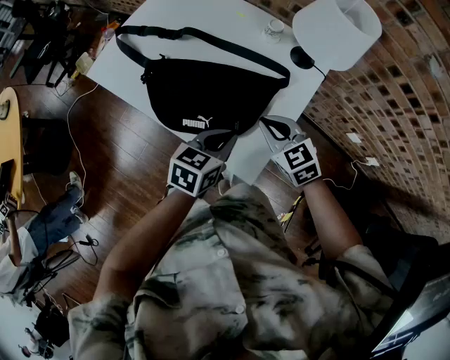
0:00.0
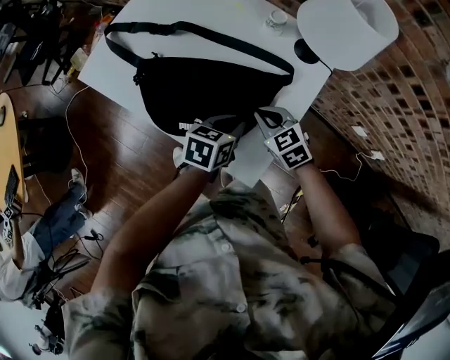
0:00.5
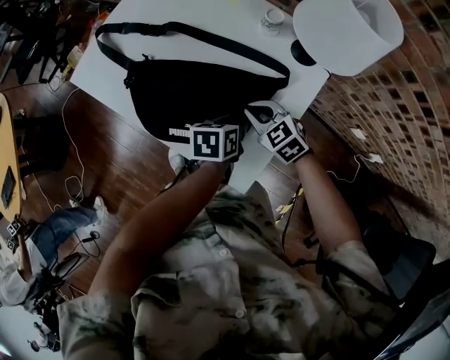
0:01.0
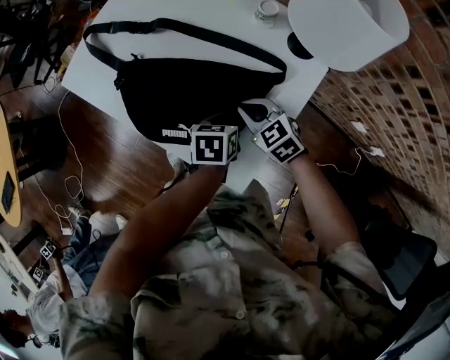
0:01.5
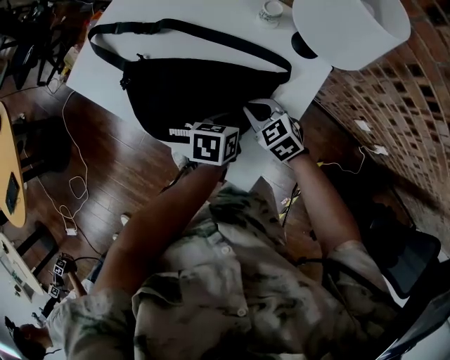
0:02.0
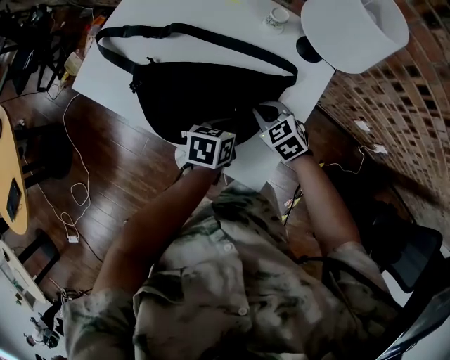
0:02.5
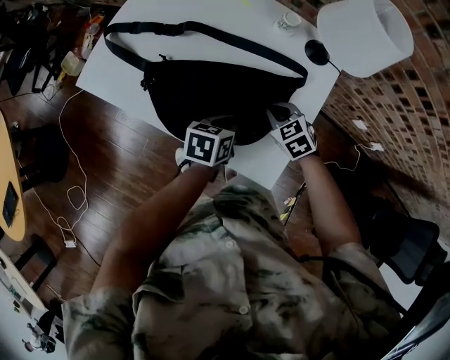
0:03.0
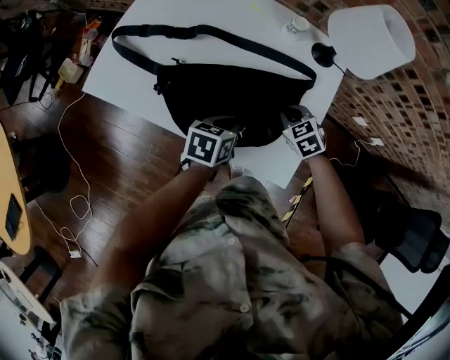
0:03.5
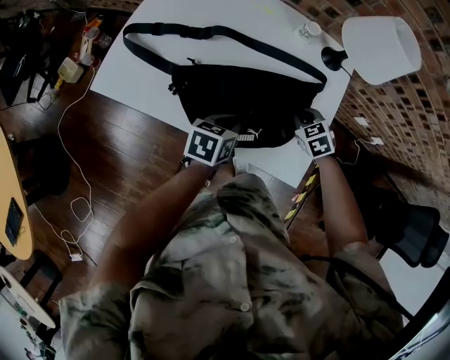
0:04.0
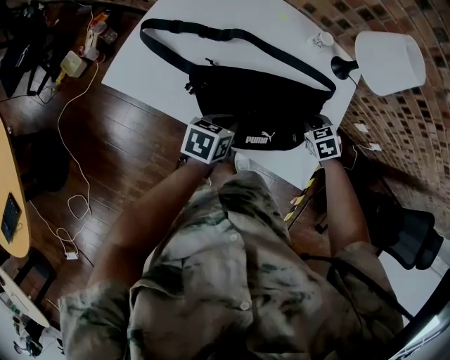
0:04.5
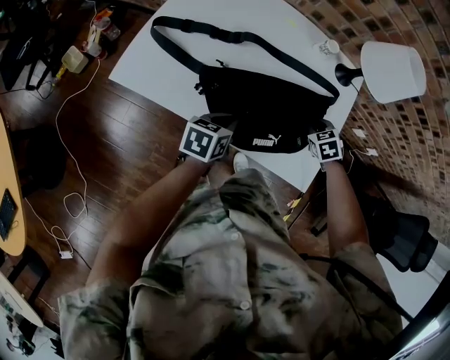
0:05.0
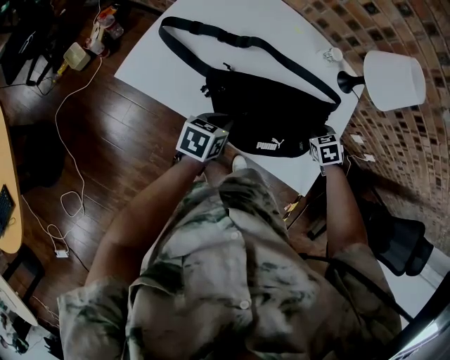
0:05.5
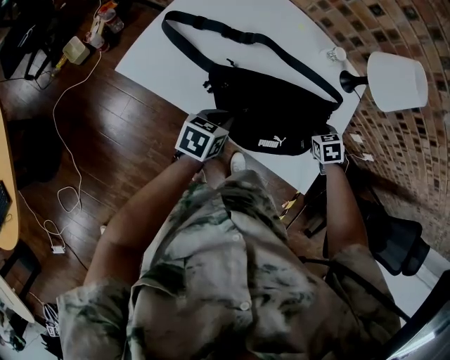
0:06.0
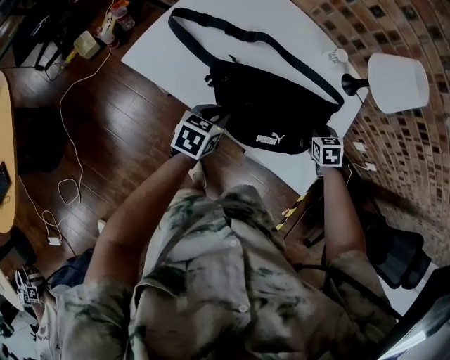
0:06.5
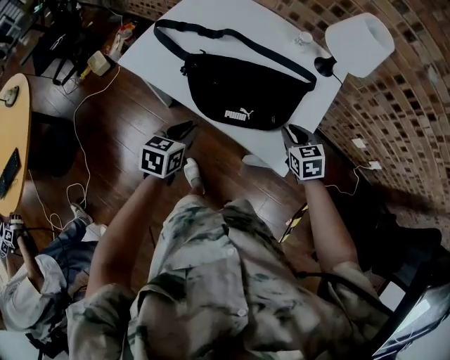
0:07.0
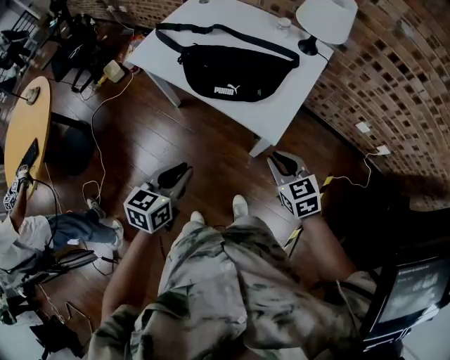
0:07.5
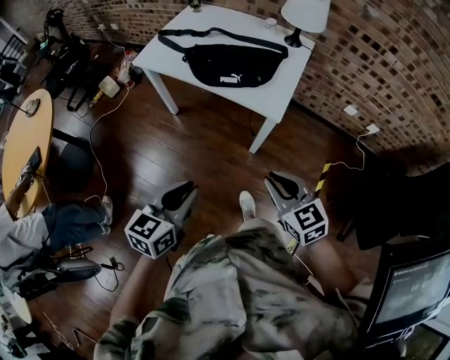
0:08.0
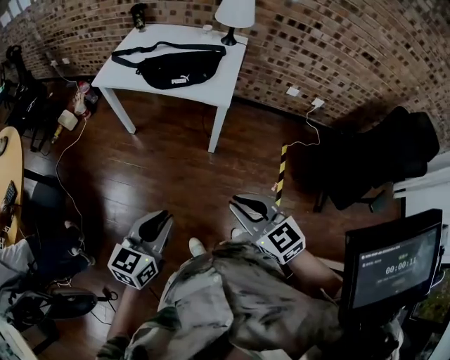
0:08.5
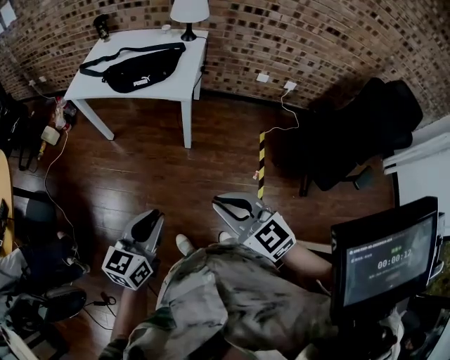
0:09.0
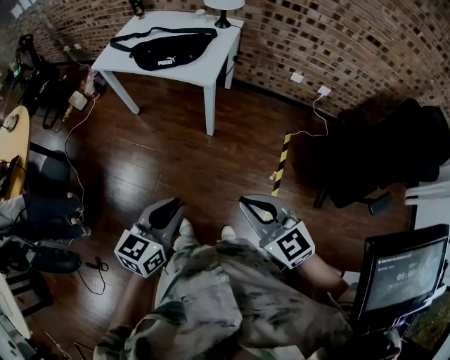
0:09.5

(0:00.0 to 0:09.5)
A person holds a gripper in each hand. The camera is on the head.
0:00.0 - 0:02.0: Both grippers move downward and forward, about 15 cm. The left gripper rotates roughly 20 degrees, and opens, then closes again.
0:02.0 - 0:04.0: The left gripper ends up roughly 15 cm from where it was. Meanwhile the right gripper changes its angle by about 30 degrees.
0:04.0 - 0:05.5: The left gripper moves to the left, roughly 10 cm.
0:05.5 - 0:07.5: The left gripper shifts by about 40 cm, and turns by roughly 20 degrees, while the right gripper ends up about 35 cm from where it was, and points its fingers roughly 30 degrees further upward.
0:07.5 - 0:09.5: The two grippers travel together, backward, about 40 cm.

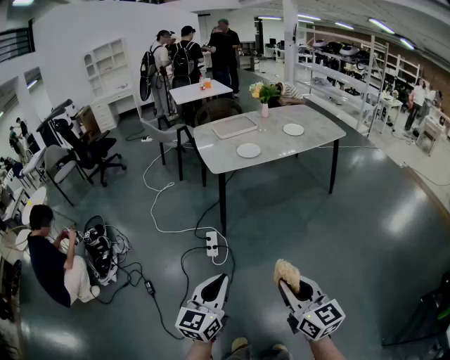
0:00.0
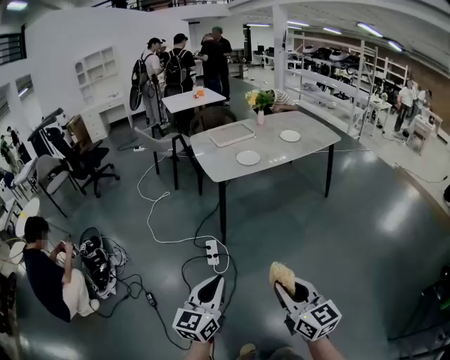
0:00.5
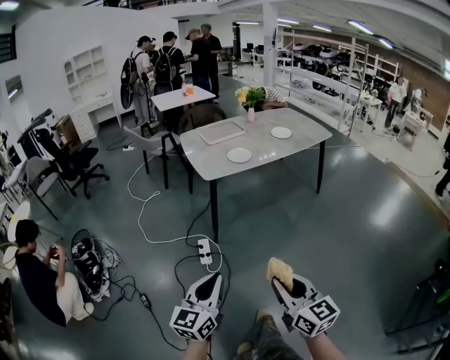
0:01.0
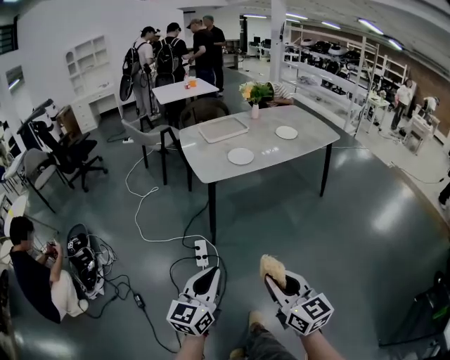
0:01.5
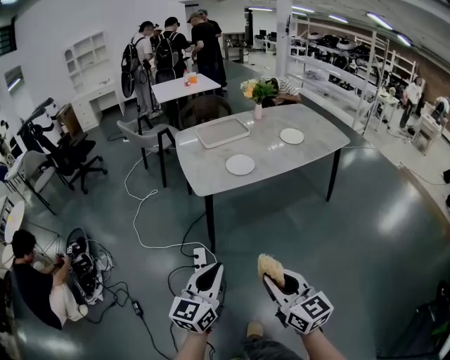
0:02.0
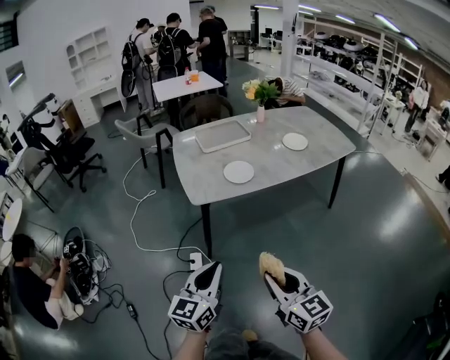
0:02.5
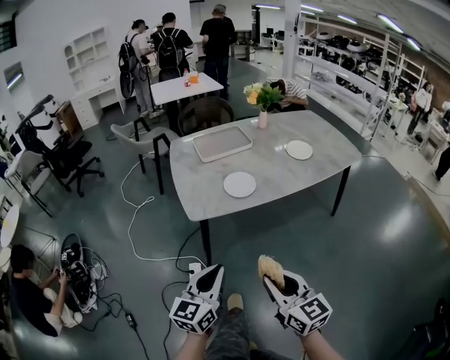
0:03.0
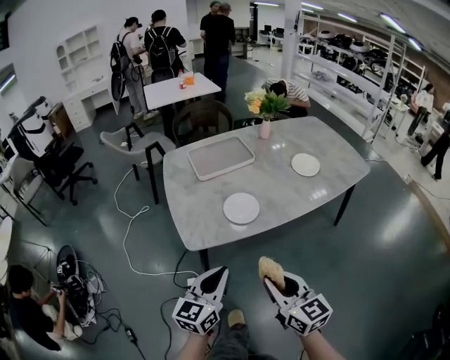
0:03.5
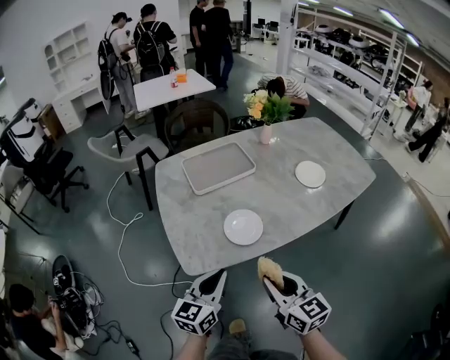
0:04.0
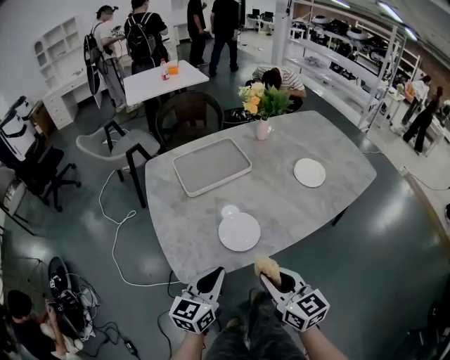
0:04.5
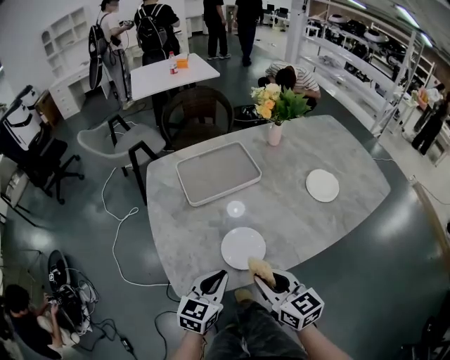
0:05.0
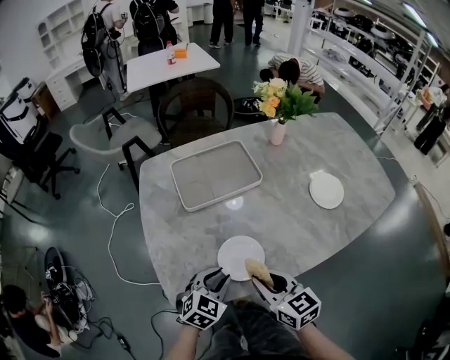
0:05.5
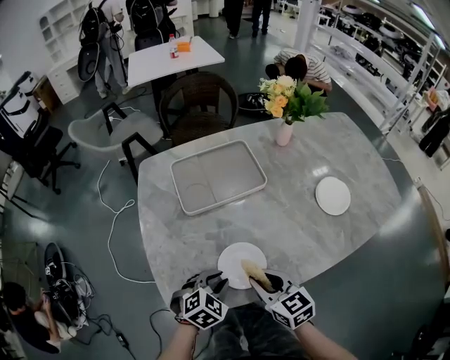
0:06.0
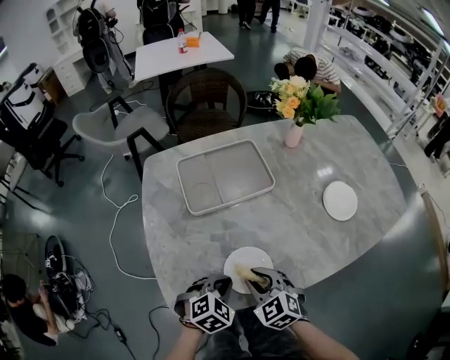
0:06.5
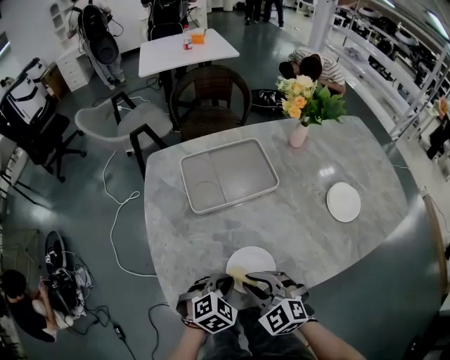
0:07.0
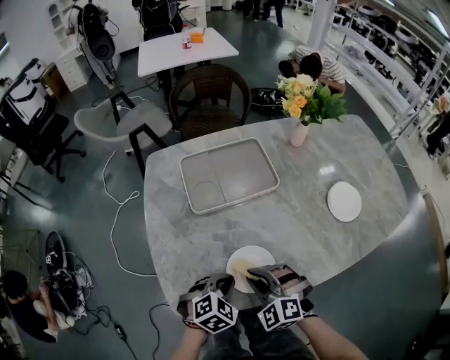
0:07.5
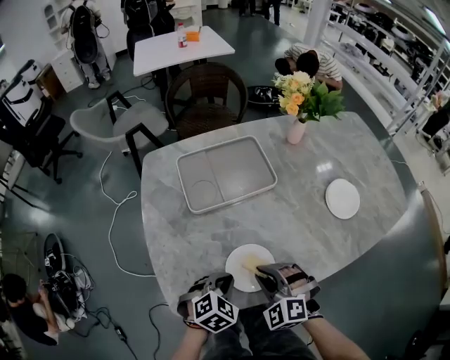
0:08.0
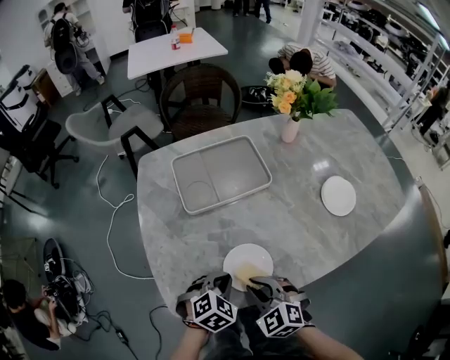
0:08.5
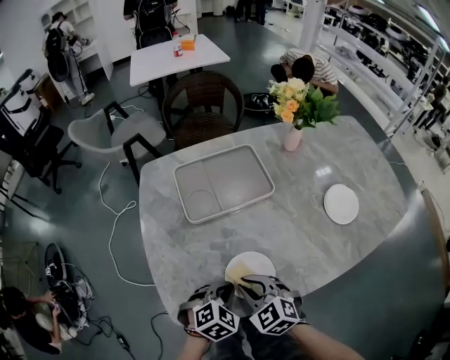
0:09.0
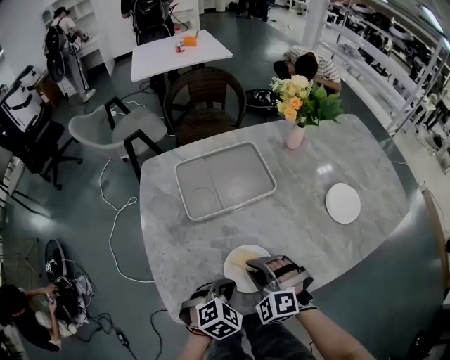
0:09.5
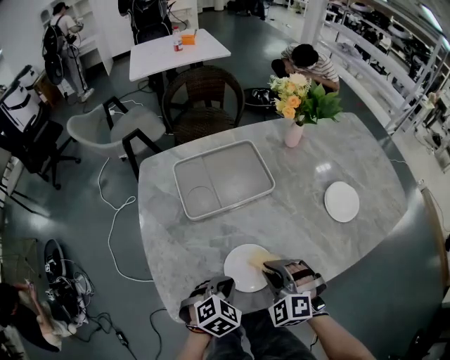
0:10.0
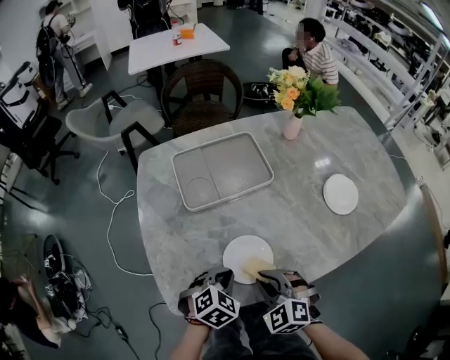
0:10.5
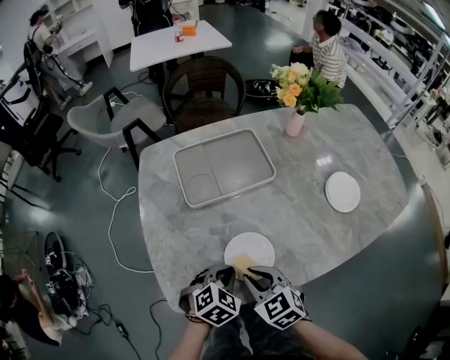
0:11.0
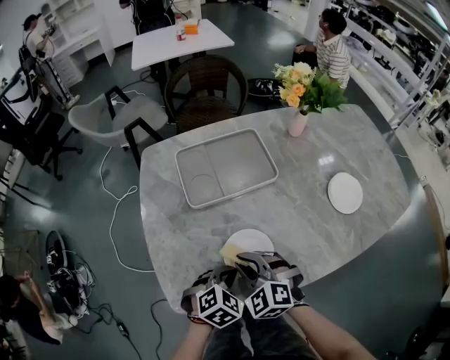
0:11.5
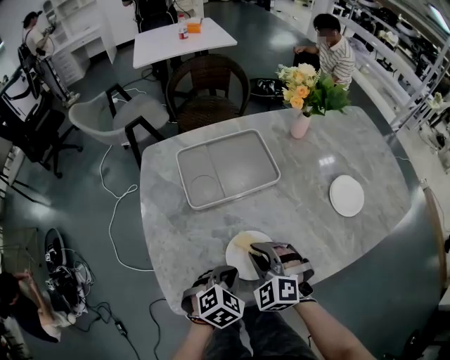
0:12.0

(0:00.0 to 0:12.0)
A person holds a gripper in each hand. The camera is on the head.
0:00.0 - 0:02.0: The two grippers go about 25 cm forward.
0:02.0 - 0:04.0: The grippers both shift forward by roughly 40 cm.
0:04.0 - 0:06.0: The grippers both shift forward and downward by some 20 cm. The right gripper rotates about 20 degrees, while the left gripper tips its fingers downward by approximately 40 degrees, and opens up.
0:06.0 - 0:08.0: The left gripper closes up. The right gripper twists approximately 60 degrees counterclockwise, seen from behind.
0:10.0 - 0:12.0: The right gripper ends up approximately 5 cm from where it was.

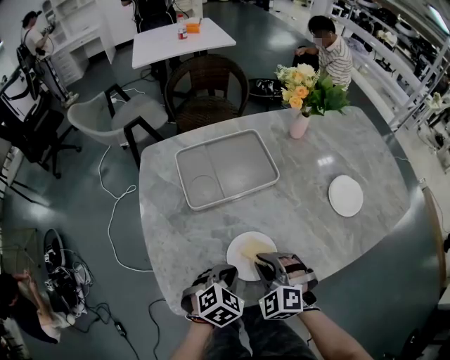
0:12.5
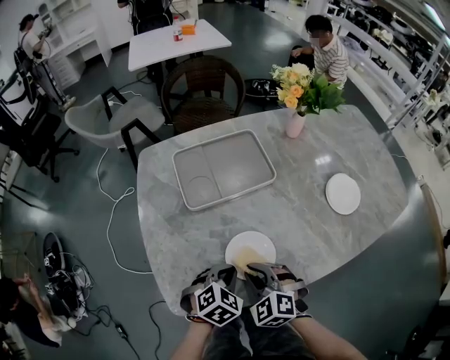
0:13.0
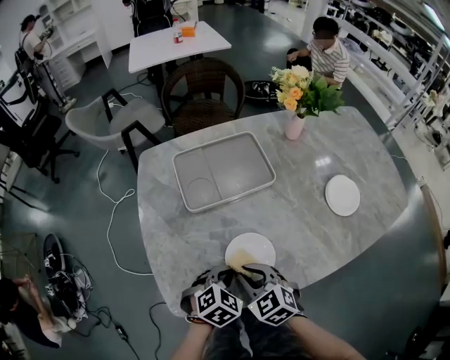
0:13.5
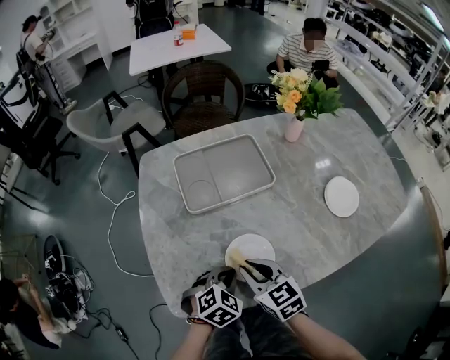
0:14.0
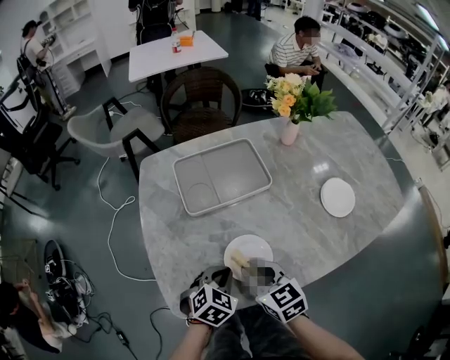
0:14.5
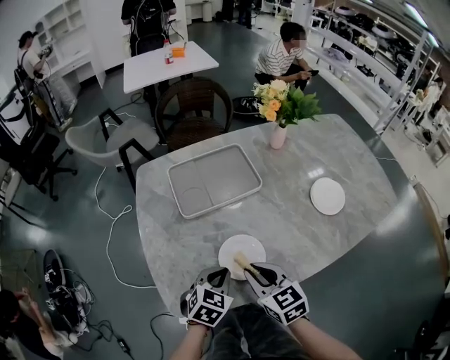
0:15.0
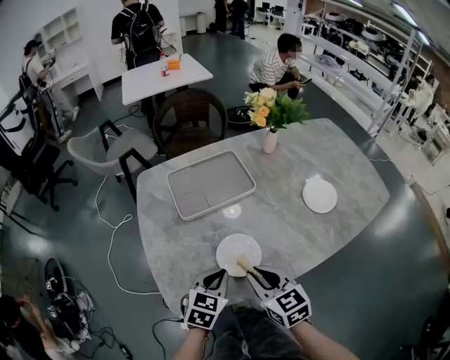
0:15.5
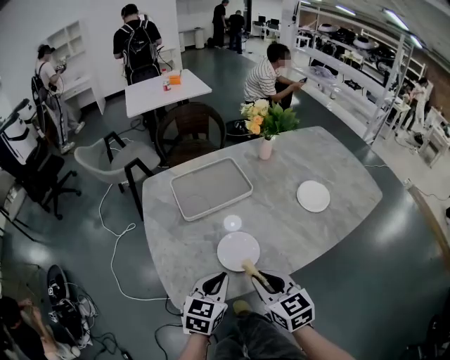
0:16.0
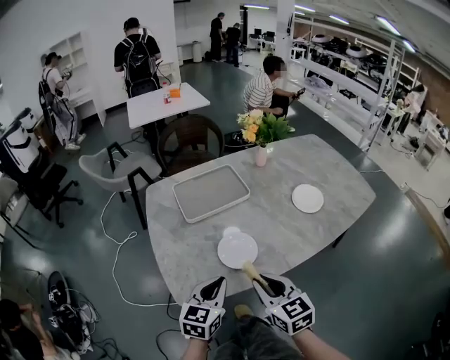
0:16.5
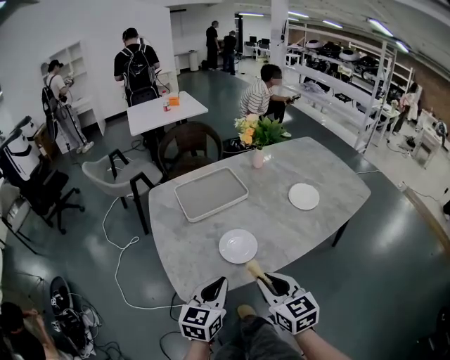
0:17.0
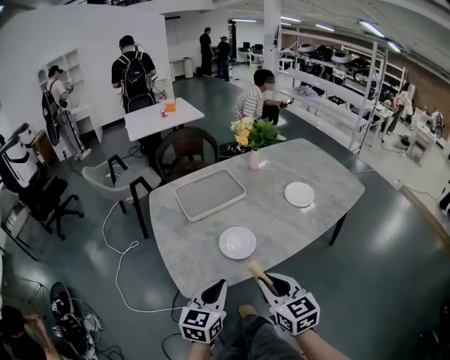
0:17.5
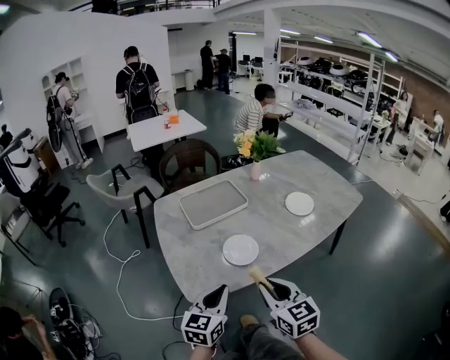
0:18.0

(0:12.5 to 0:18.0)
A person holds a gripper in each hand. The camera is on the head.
0:12.5 - 0:14.5: The right gripper rotates around the line of its fingers by some 50 degrees, clockwise from behind.
0:14.5 - 0:16.0: The left gripper is displaced upward and backward by roughly 10 cm, and swivels about 30 degrees, while the right gripper heads backward and upward, covering some 10 cm.
0:16.0 - 0:18.0: The two grippers go about 15 cm backward and upward.
